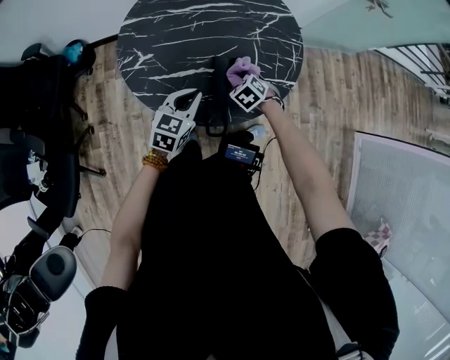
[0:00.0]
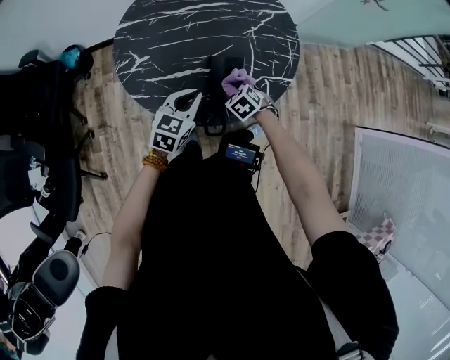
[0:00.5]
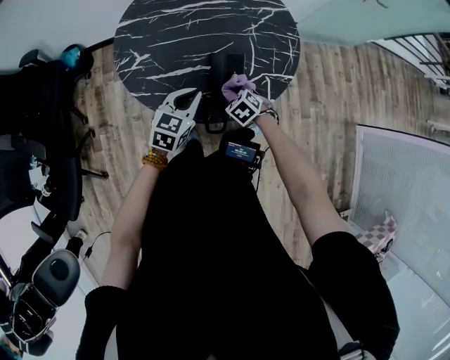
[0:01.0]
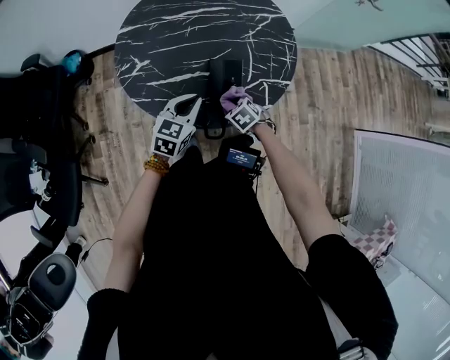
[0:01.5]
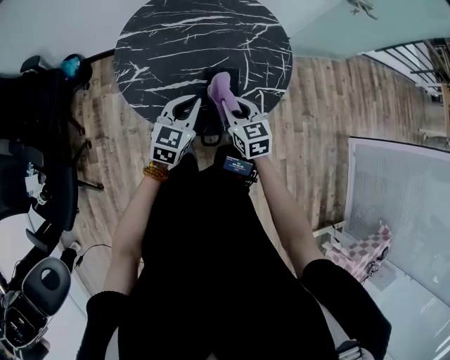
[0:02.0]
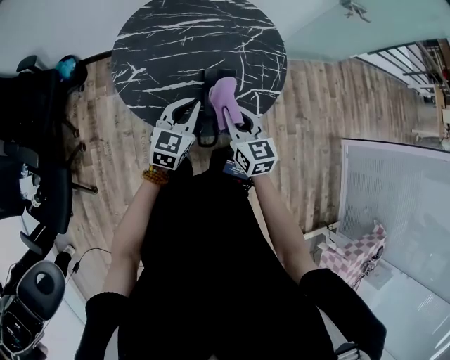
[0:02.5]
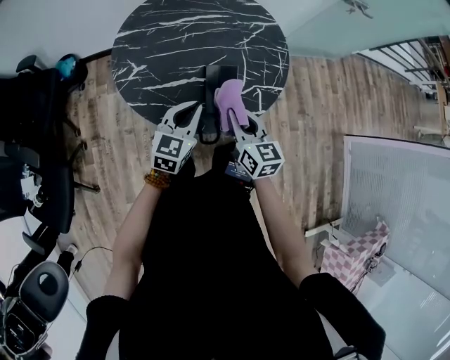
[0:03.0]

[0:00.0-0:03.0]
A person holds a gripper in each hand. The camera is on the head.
0:00.0 to 0:01.5: The right gripper shifts approximately 10 cm backward.
0:01.5 to 0:03.0: The right gripper moves upward, some 20 cm, and tips its fingers upward by about 50 degrees; the left gripper heads upward, covering about 5 cm.

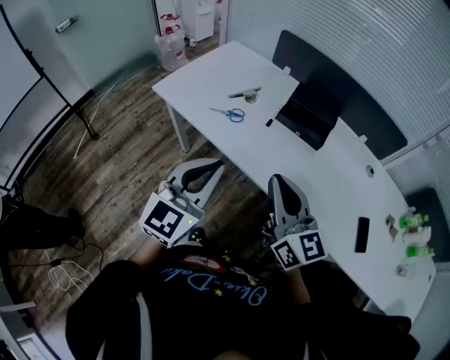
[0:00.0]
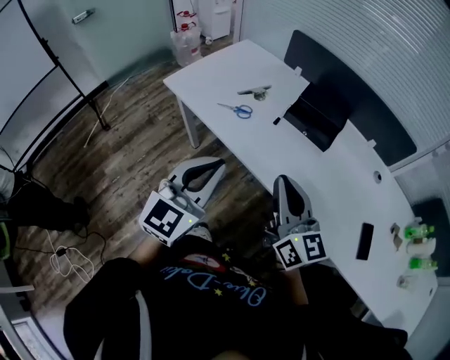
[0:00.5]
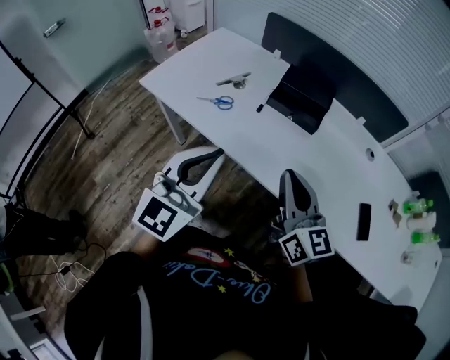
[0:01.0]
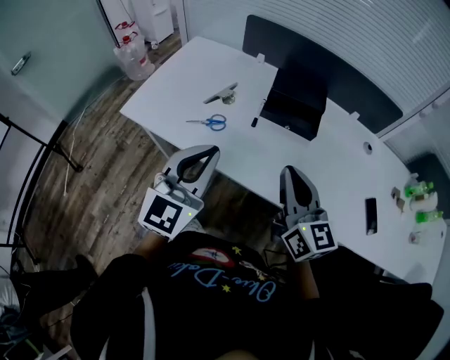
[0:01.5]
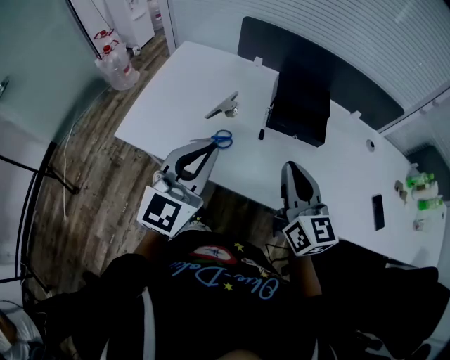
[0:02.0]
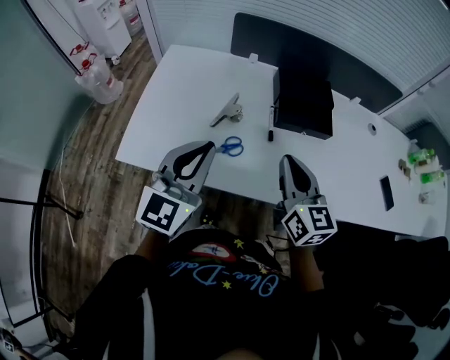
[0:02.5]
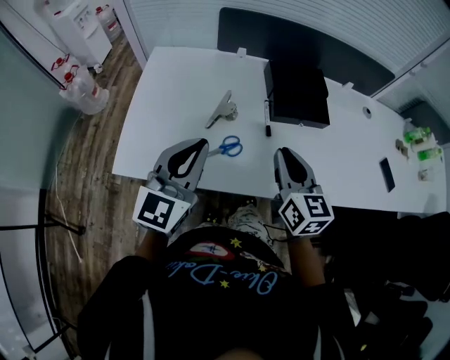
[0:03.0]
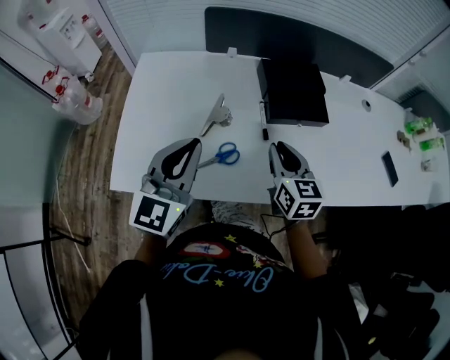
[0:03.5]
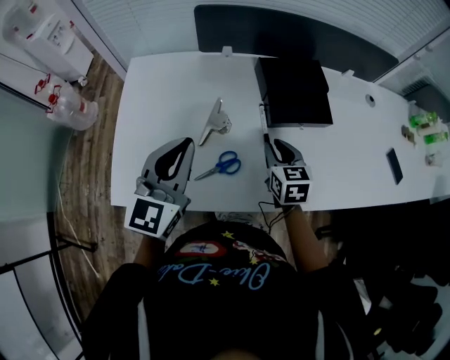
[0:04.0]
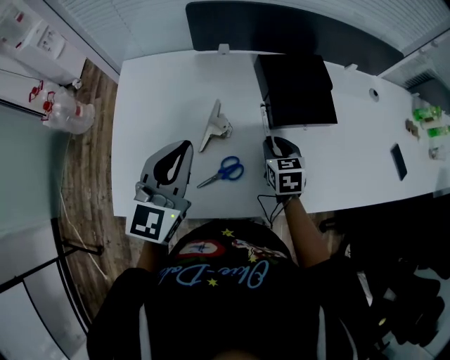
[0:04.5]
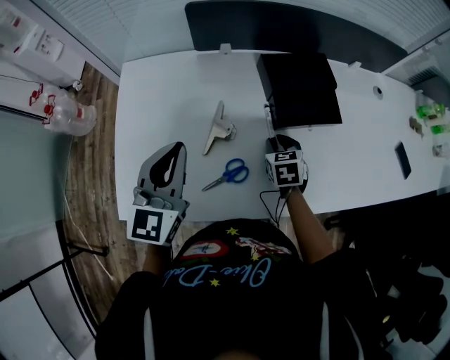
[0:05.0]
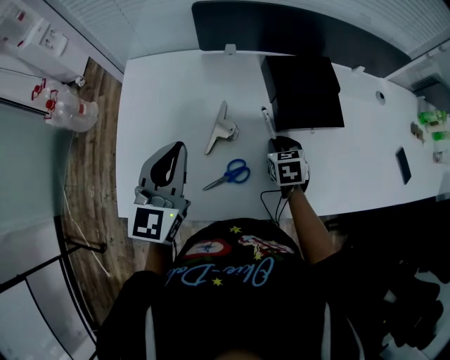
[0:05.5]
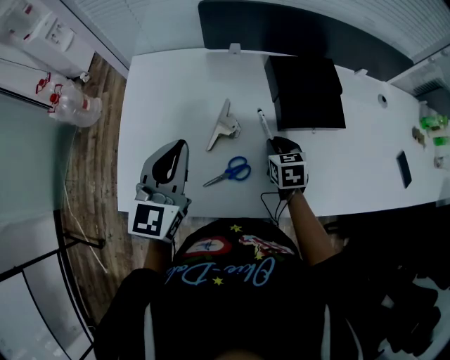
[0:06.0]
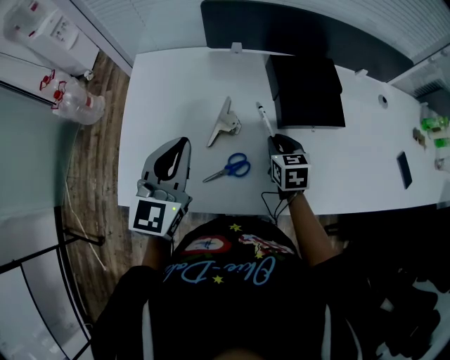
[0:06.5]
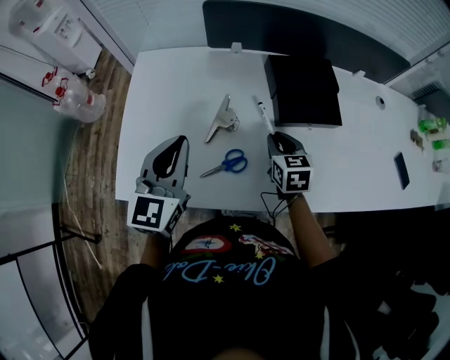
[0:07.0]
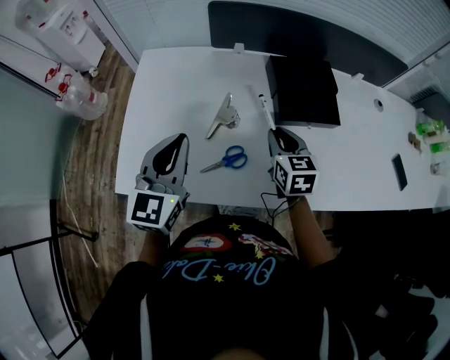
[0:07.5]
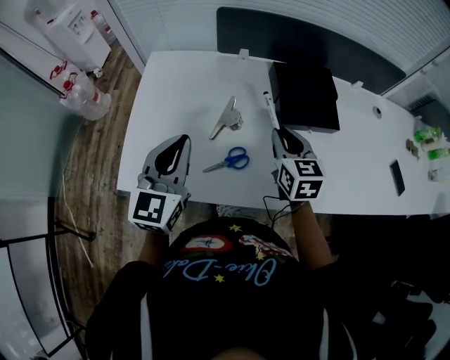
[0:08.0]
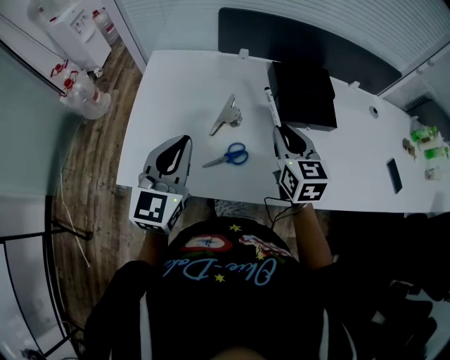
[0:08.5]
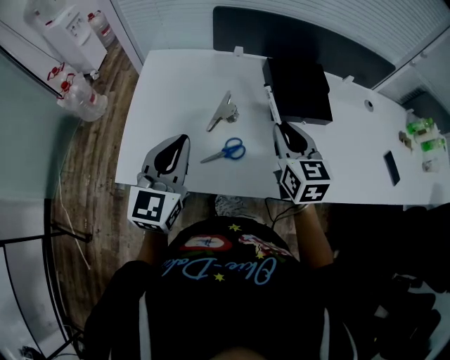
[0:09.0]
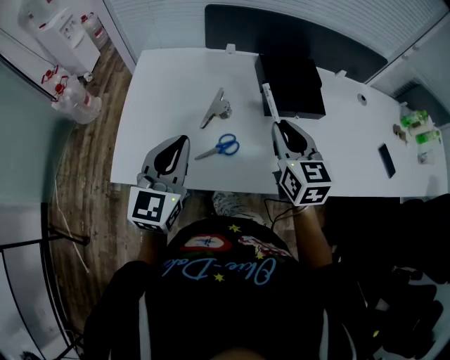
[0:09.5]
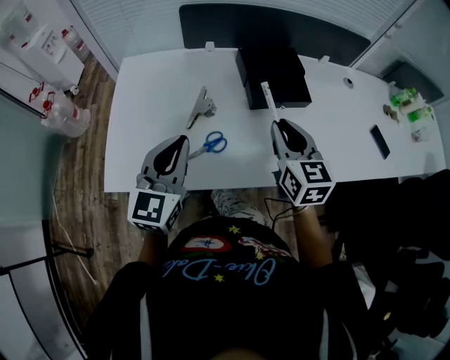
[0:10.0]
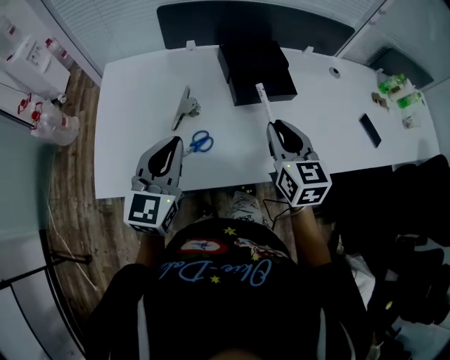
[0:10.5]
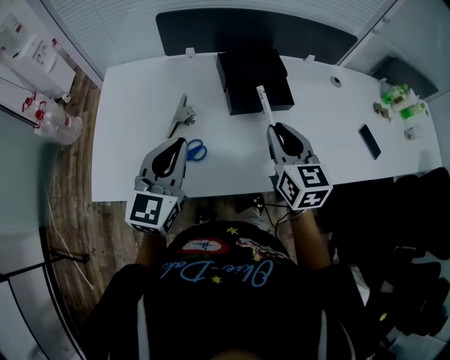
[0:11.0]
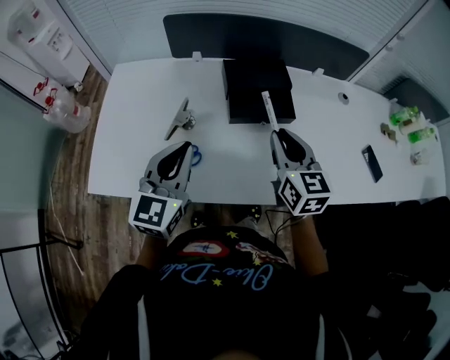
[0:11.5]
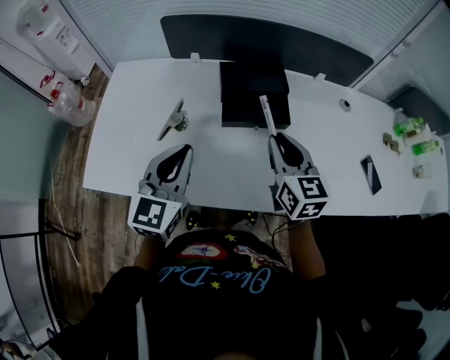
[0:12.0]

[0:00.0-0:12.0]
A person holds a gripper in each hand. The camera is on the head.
0:00.0 to 0:02.0: The two grippers go approximately 20 cm forward. The right gripper turns by about 30 degrees.
0:02.0 to 0:04.0: The left gripper travels forward and to the left by approximately 20 cm. The right gripper travels downward and forward by approximately 25 cm, points its fingers about 30 degrees further downward, and opens.
0:04.0 to 0:06.0: The left gripper changes place by about 5 cm, while the right gripper travels downward by some 5 cm.
0:06.0 to 0:08.0: The right gripper heads upward, covering some 15 cm, and rotates about 20 degrees; the left gripper moves backward, about 5 cm.
0:08.0 to 0:10.0: The left gripper moves to the right, approximately 5 cm. The right gripper is displaced backward, upward and to the right by approximately 10 cm.
0:10.0 to 0:12.0: The right gripper heads to the right and forward, covering approximately 10 cm. The left gripper heads to the right, covering roughly 15 cm.

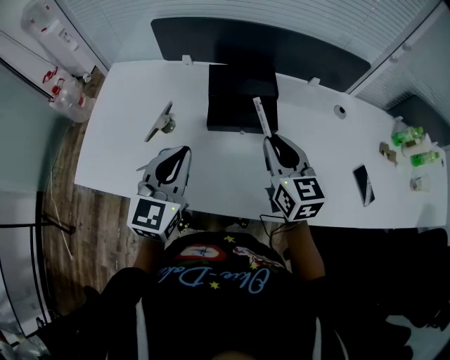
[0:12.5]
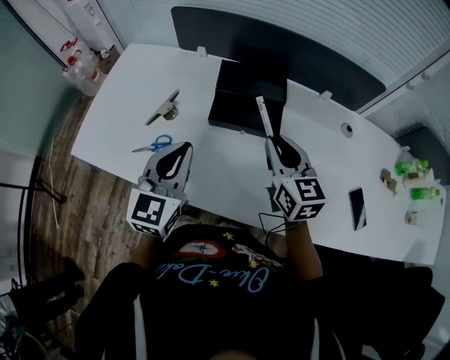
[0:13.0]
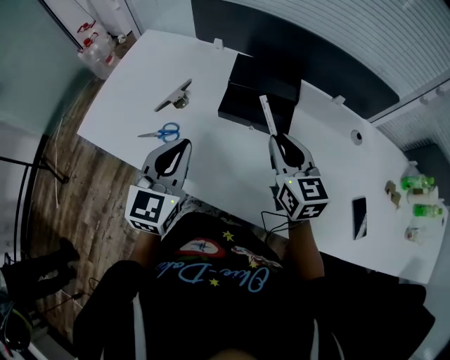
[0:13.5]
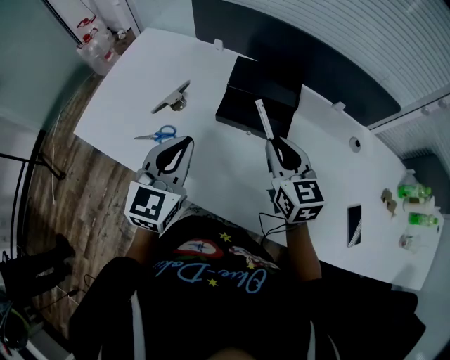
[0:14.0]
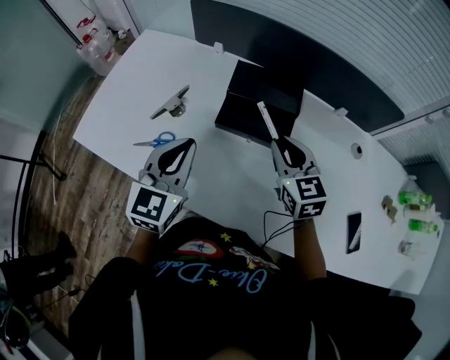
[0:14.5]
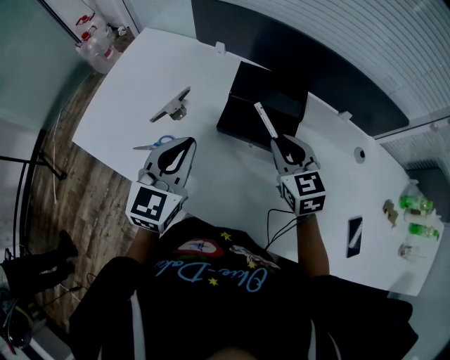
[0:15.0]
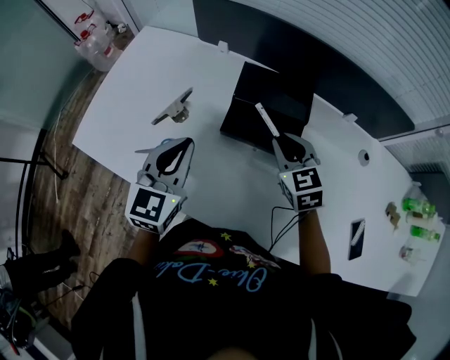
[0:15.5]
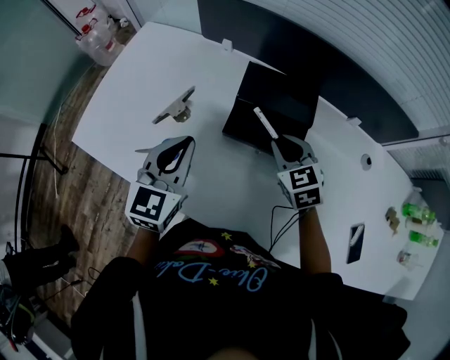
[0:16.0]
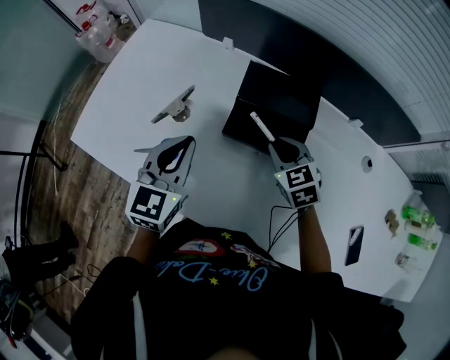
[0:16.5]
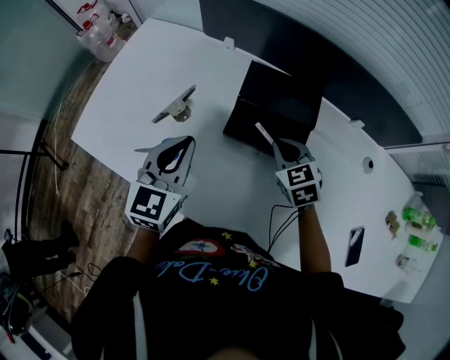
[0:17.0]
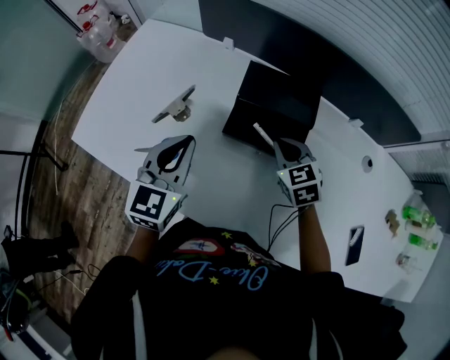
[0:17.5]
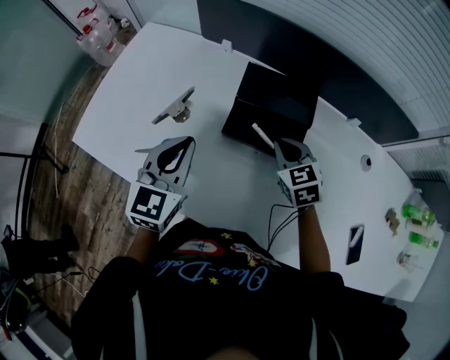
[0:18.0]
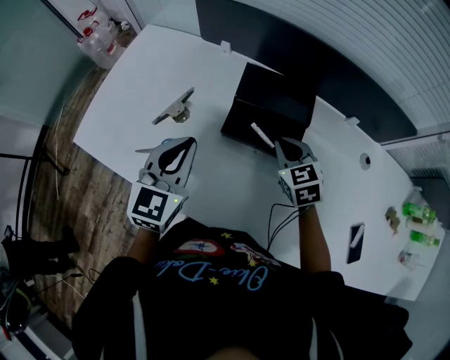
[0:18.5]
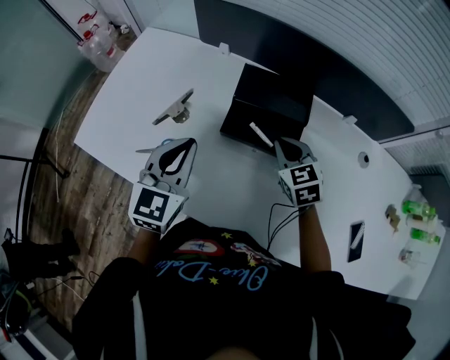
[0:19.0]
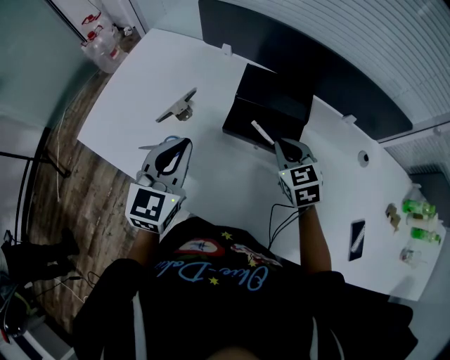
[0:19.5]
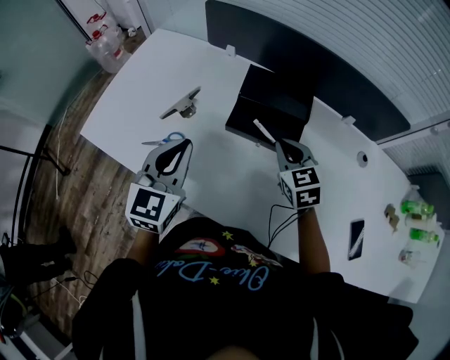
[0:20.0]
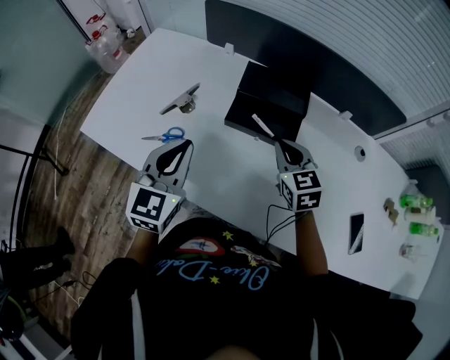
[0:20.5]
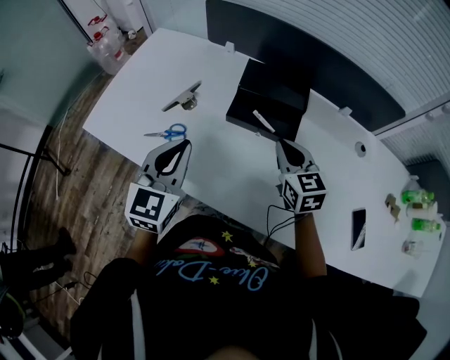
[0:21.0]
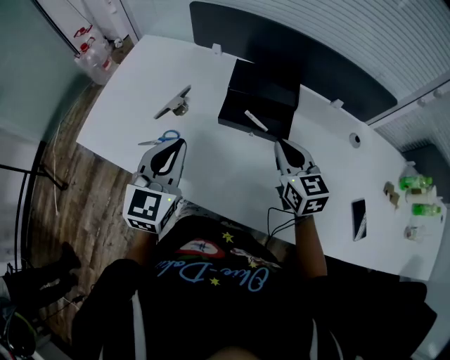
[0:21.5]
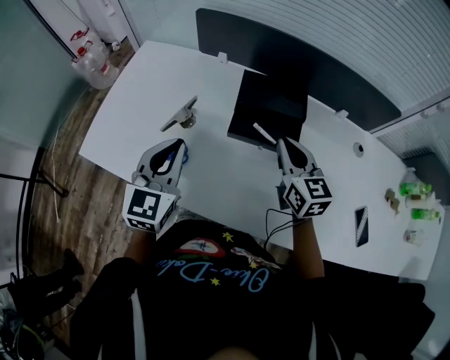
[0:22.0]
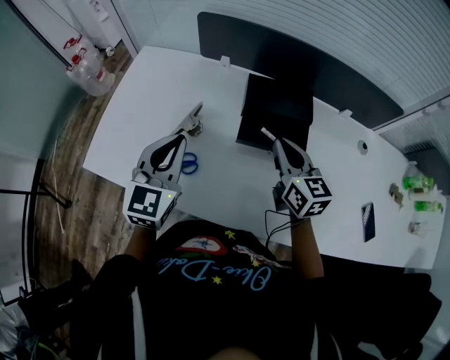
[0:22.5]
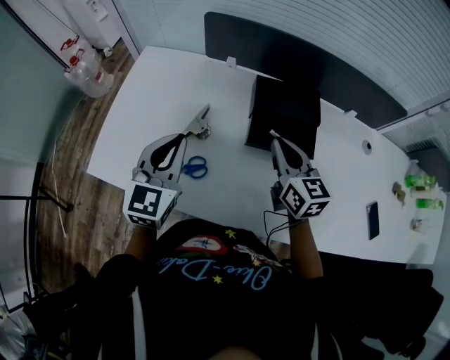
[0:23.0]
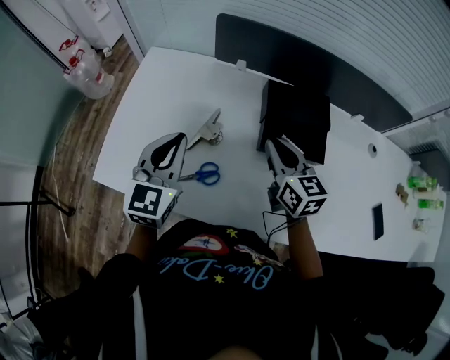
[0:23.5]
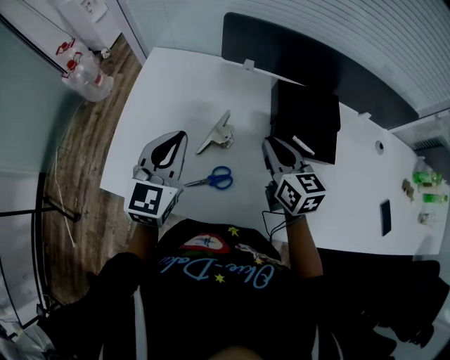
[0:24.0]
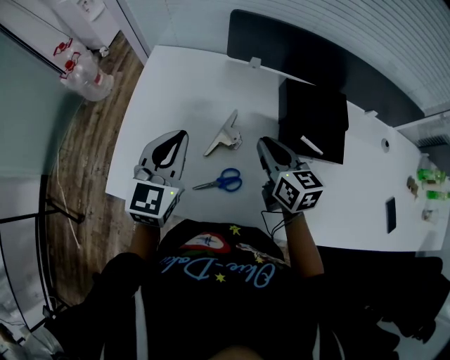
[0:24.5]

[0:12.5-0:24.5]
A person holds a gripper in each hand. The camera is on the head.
0:12.5 to 0:14.5: The right gripper shifts about 5 cm forward, and changes its angle by about 20 degrees.
0:14.5 to 0:16.5: The right gripper is displaced downward and forward by roughly 10 cm, and changes its angle by approximately 20 degrees. Meanwhile the left gripper travels forward by some 5 cm.
0:16.5 to 0:18.5: The grippers make only small movements.
0:18.5 to 0:20.5: Both grippers travel together backward, about 5 cm.
0:20.5 to 0:22.5: The right gripper goes roughly 10 cm to the left and upward, and rotates approximately 30 degrees. The left gripper heads forward and to the left, covering approximately 10 cm.
0:22.5 to 0:24.5: The right gripper heads to the left, covering roughly 15 cm. Meanwhile the left gripper goes roughly 15 cm to the left and forward.
